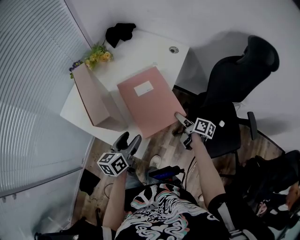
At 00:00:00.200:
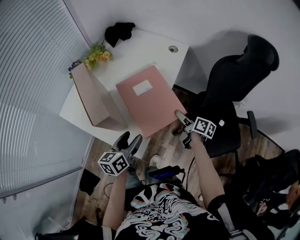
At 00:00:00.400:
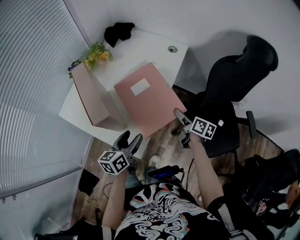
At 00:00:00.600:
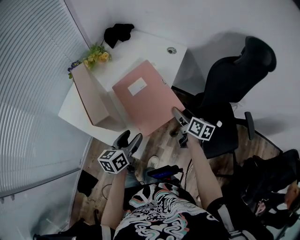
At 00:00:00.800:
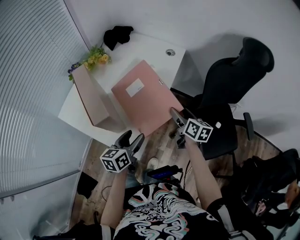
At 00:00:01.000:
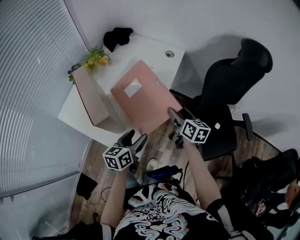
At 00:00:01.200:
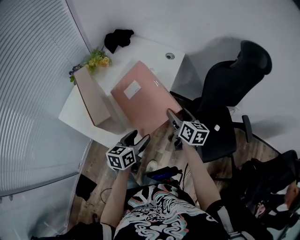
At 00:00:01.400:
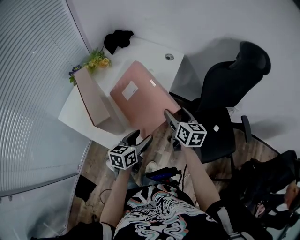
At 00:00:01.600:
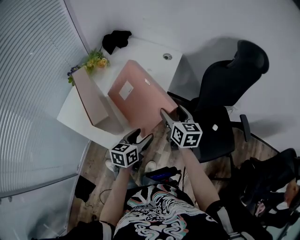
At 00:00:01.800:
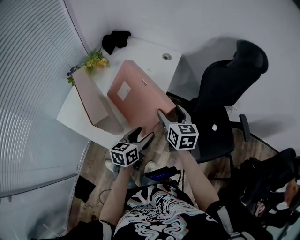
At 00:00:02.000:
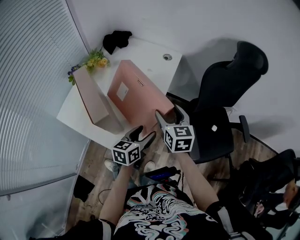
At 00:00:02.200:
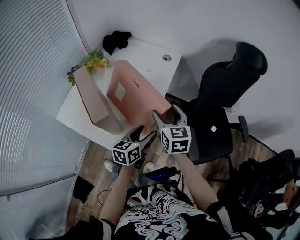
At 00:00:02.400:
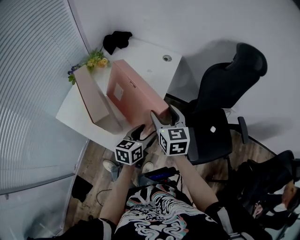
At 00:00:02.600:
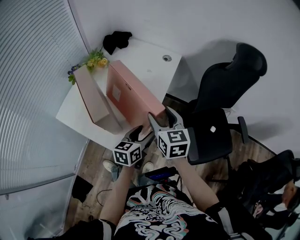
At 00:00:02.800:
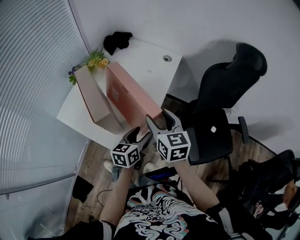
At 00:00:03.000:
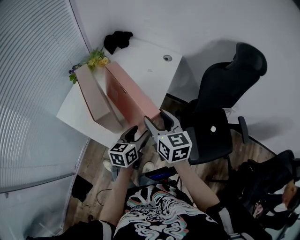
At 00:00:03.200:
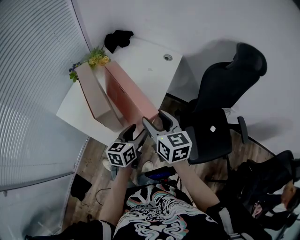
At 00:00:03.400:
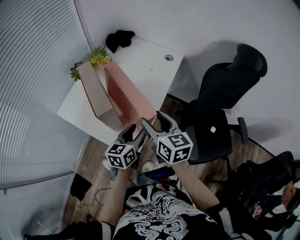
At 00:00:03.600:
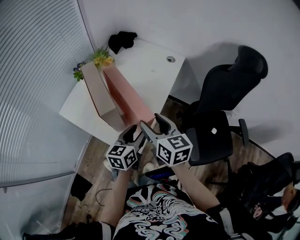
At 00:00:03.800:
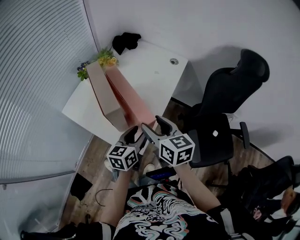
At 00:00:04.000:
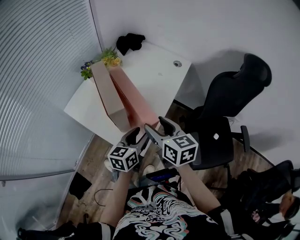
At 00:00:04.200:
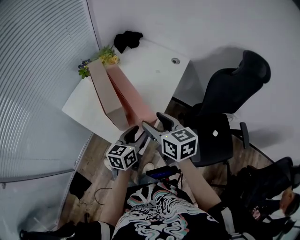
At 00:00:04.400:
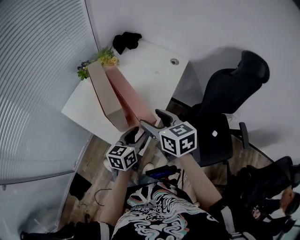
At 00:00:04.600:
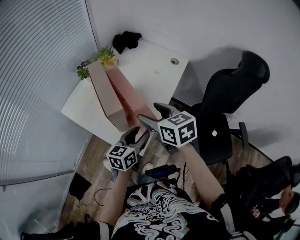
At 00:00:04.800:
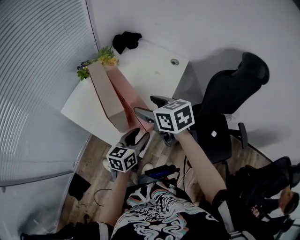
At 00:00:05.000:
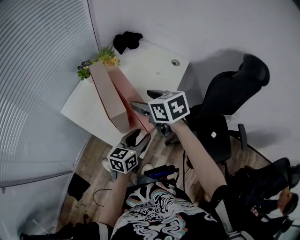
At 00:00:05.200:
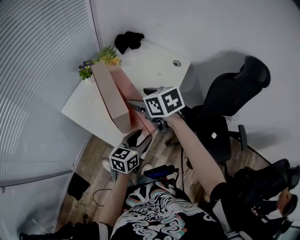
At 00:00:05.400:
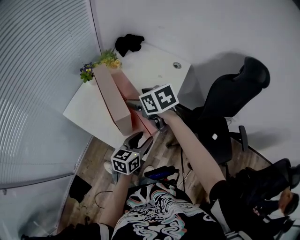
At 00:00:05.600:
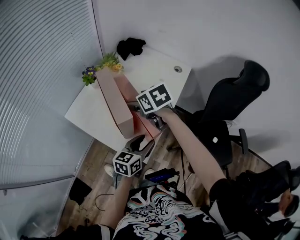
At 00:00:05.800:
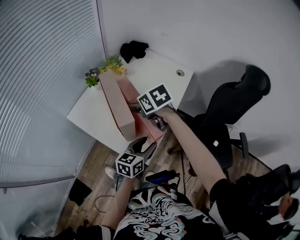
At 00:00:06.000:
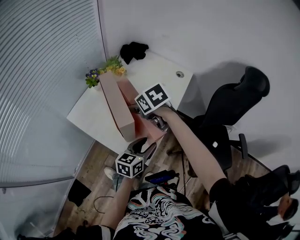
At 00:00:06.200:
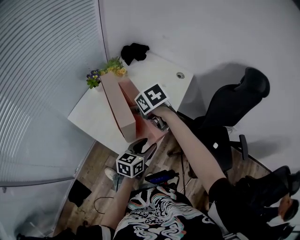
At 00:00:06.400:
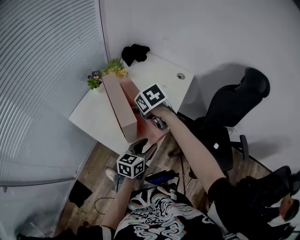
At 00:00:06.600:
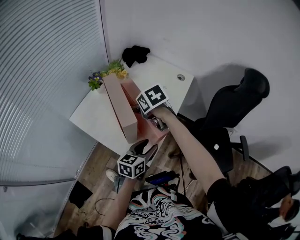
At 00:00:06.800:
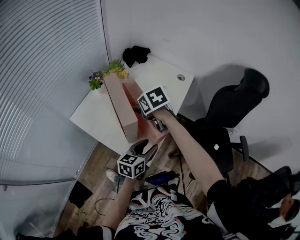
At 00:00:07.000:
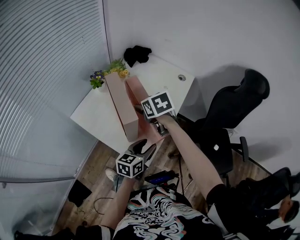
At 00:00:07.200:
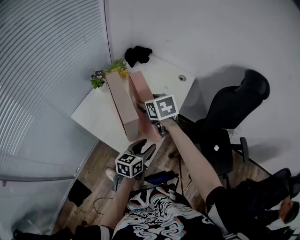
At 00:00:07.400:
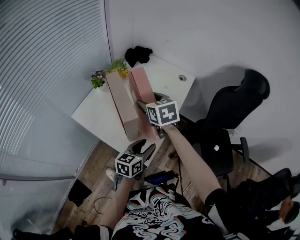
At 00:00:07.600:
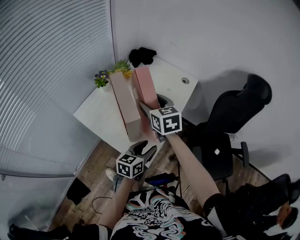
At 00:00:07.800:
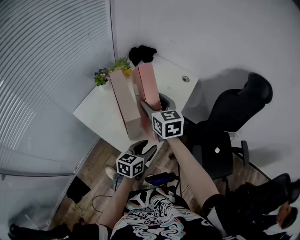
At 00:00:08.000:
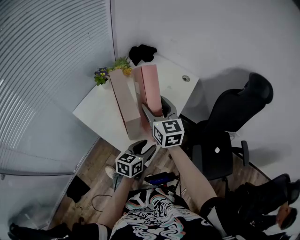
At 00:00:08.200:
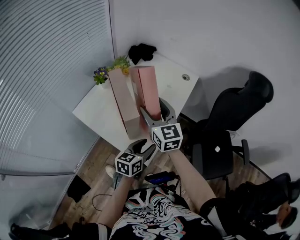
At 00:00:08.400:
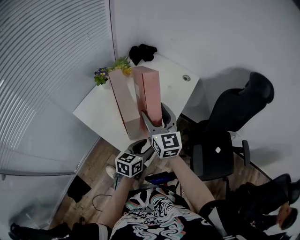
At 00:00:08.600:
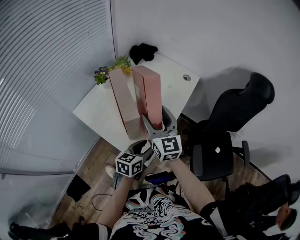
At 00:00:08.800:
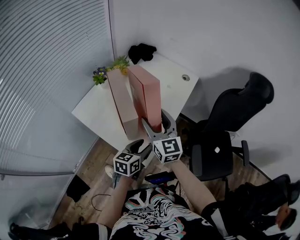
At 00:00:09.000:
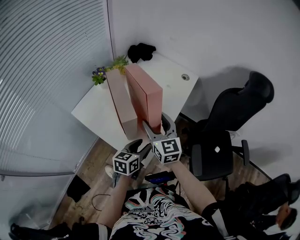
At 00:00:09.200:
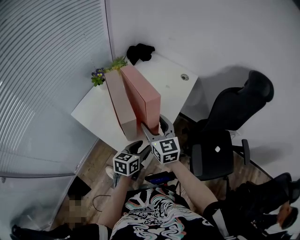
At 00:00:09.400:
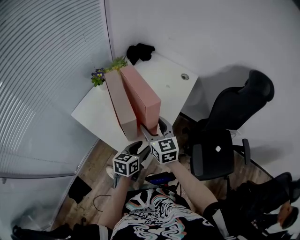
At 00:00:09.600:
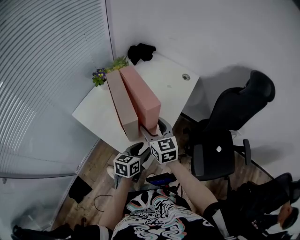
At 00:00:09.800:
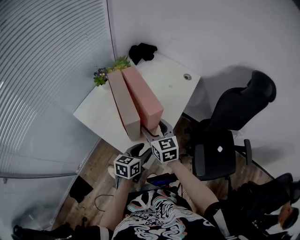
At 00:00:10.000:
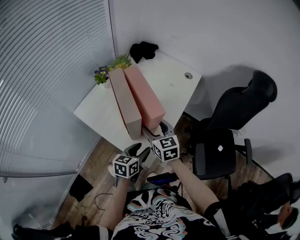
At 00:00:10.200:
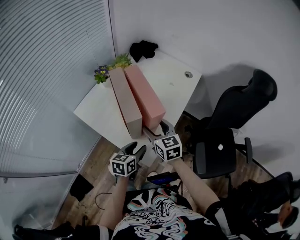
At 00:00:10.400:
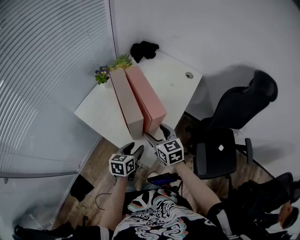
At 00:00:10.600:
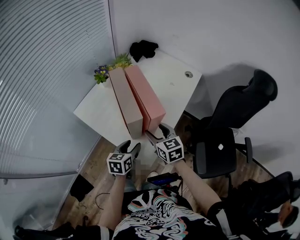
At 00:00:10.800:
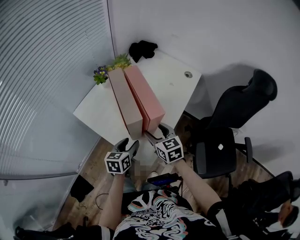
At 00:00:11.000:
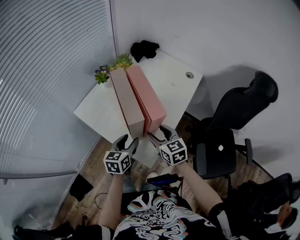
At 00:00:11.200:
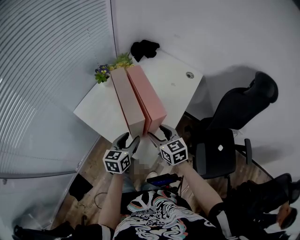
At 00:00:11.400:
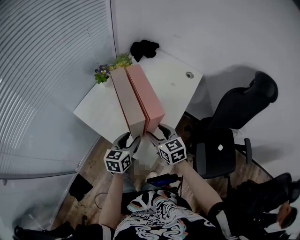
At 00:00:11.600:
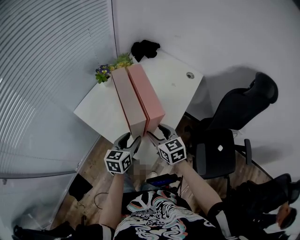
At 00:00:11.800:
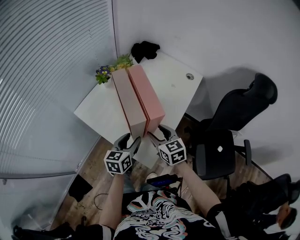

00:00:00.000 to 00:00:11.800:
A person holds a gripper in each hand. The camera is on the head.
00:00:00.000 to 00:00:01.400: The right gripper goes approximately 15 cm upward, and swivels some 40 degrees; the left gripper travels to the right by roughly 5 cm.
00:00:01.400 to 00:00:03.000: The right gripper goes about 15 cm to the left, upward and backward.
00:00:03.000 to 00:00:04.400: The right gripper moves to the left, about 5 cm.
00:00:04.400 to 00:00:06.000: The right gripper goes some 15 cm forward and to the left, and turns by about 30 degrees.
00:00:06.000 to 00:00:07.400: The right gripper turns by approximately 20 degrees.
00:00:07.400 to 00:00:08.800: The right gripper shifts about 5 cm backward, and turns by some 30 degrees.
00:00:08.800 to 00:00:10.400: The left gripper moves to the left, some 5 cm. Meanwhile the right gripper is displaced downward by roughly 10 cm, and rotates about 20 degrees.
00:00:10.400 to 00:00:11.800: The left gripper moves some 5 cm.

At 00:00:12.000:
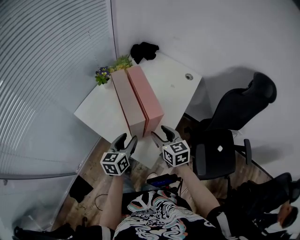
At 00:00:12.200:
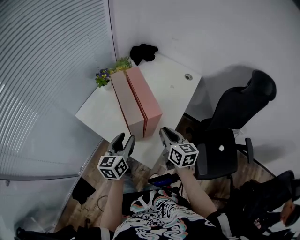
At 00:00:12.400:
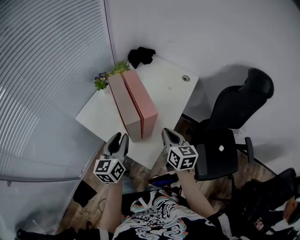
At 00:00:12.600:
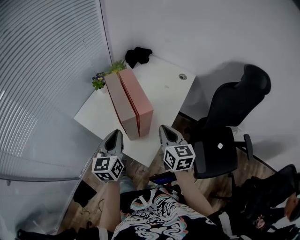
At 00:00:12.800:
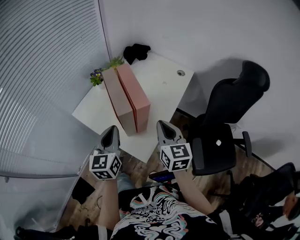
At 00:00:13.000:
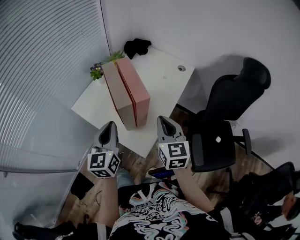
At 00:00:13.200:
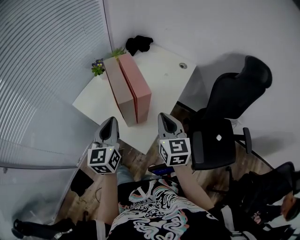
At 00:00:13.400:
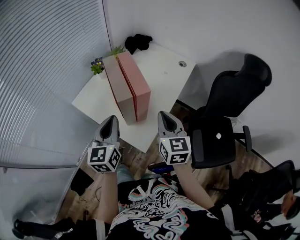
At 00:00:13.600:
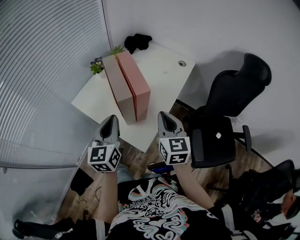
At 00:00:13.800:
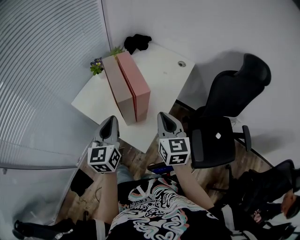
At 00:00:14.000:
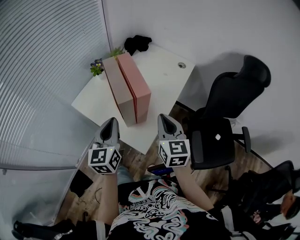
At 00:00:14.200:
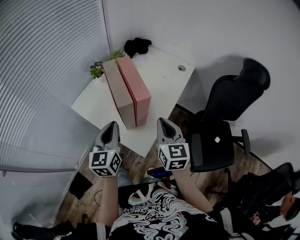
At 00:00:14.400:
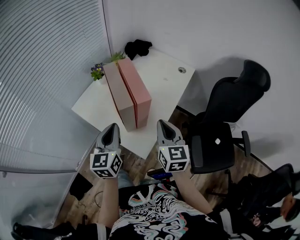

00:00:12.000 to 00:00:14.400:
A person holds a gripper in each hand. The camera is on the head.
00:00:12.000 to 00:00:13.200: Both grippers move upward, about 10 cm. The left gripper rotates about 20 degrees, and closes. The right gripper closes.
00:00:13.200 to 00:00:14.400: The grippers make only small movements.

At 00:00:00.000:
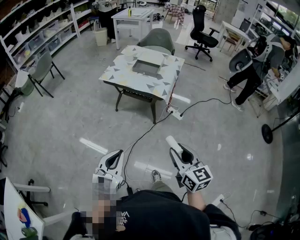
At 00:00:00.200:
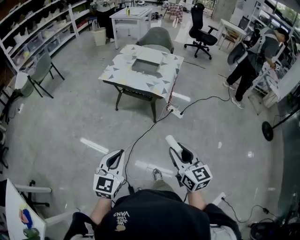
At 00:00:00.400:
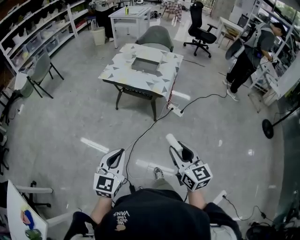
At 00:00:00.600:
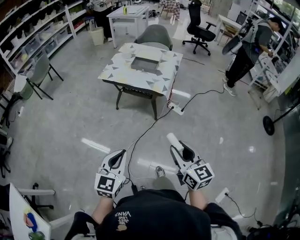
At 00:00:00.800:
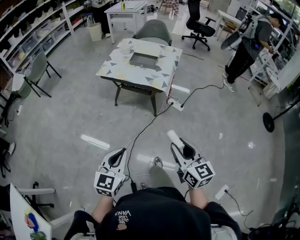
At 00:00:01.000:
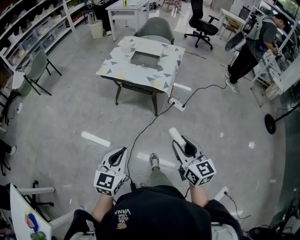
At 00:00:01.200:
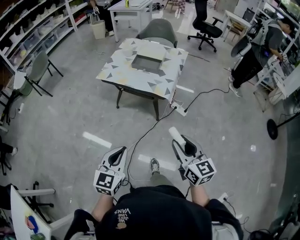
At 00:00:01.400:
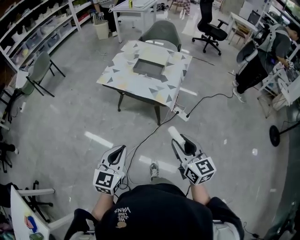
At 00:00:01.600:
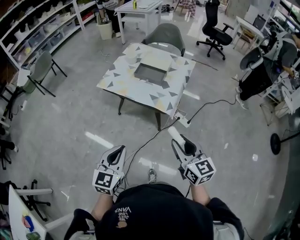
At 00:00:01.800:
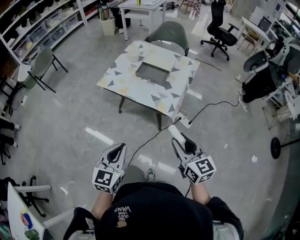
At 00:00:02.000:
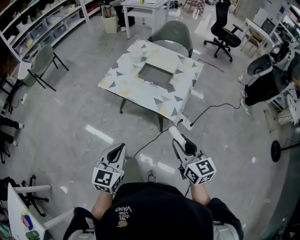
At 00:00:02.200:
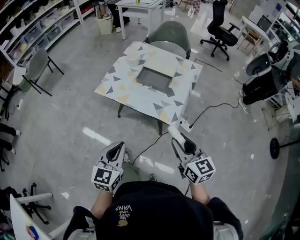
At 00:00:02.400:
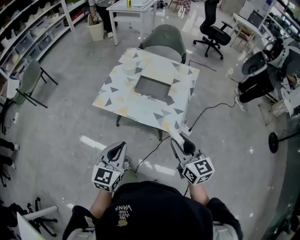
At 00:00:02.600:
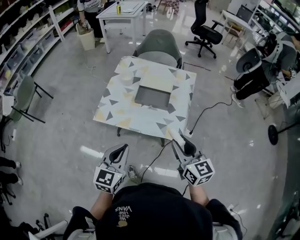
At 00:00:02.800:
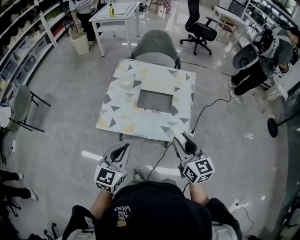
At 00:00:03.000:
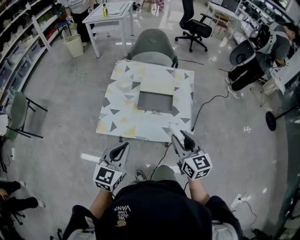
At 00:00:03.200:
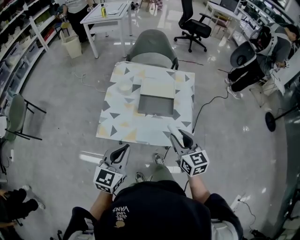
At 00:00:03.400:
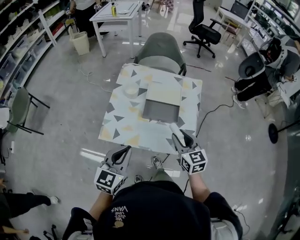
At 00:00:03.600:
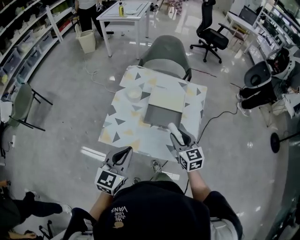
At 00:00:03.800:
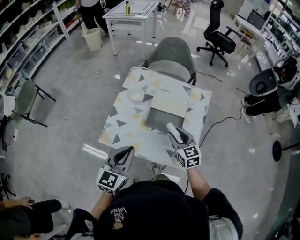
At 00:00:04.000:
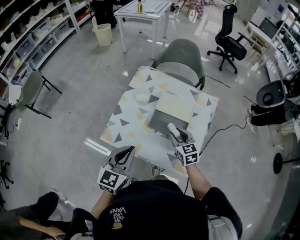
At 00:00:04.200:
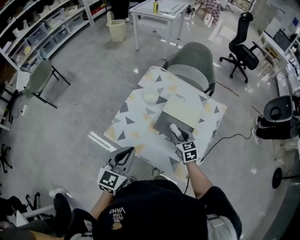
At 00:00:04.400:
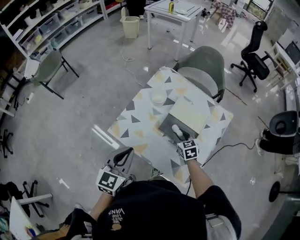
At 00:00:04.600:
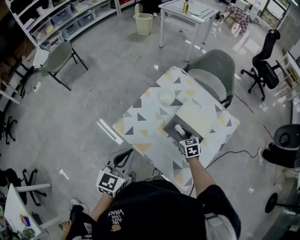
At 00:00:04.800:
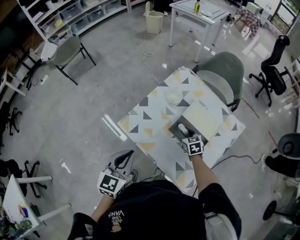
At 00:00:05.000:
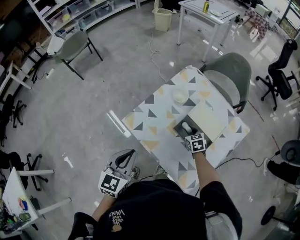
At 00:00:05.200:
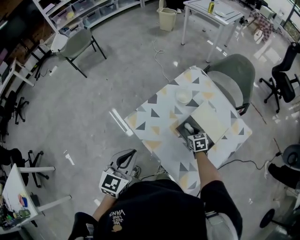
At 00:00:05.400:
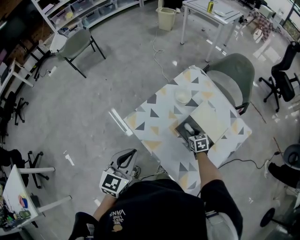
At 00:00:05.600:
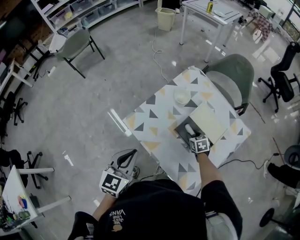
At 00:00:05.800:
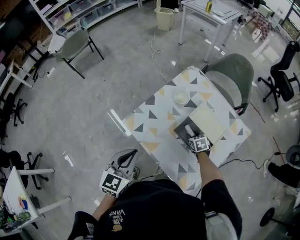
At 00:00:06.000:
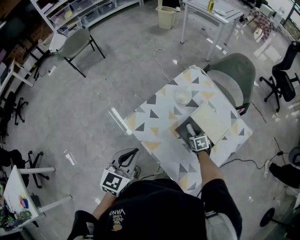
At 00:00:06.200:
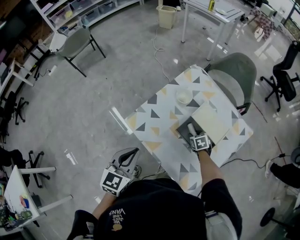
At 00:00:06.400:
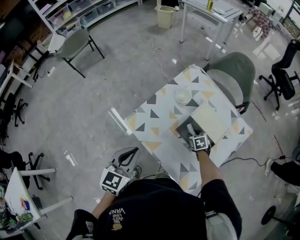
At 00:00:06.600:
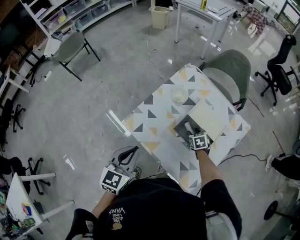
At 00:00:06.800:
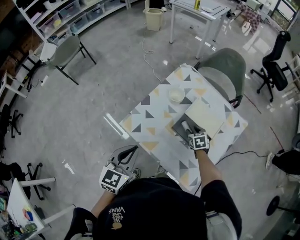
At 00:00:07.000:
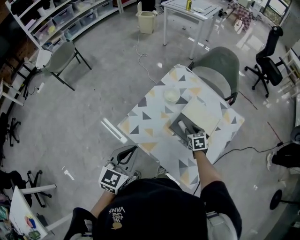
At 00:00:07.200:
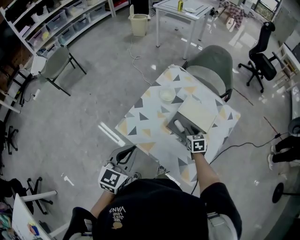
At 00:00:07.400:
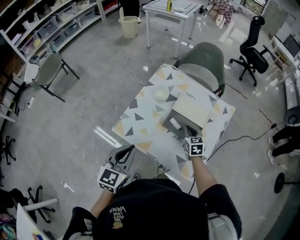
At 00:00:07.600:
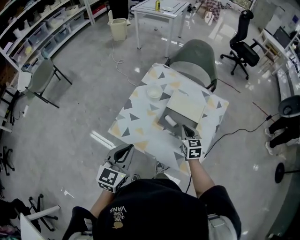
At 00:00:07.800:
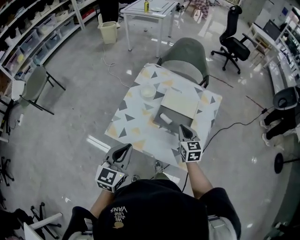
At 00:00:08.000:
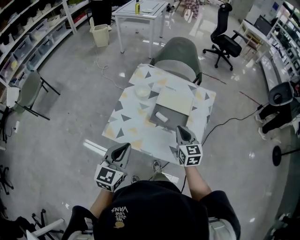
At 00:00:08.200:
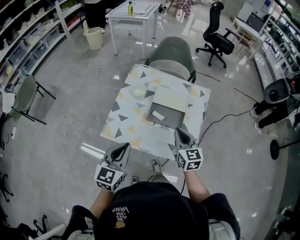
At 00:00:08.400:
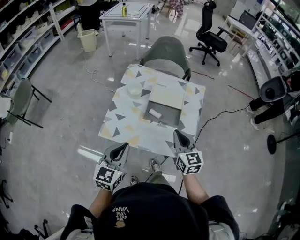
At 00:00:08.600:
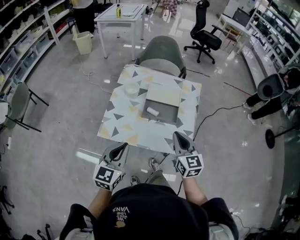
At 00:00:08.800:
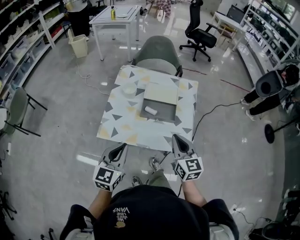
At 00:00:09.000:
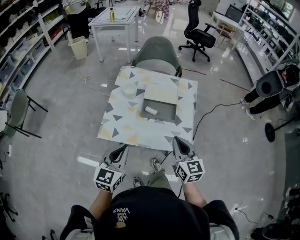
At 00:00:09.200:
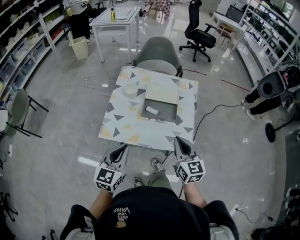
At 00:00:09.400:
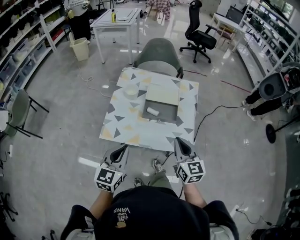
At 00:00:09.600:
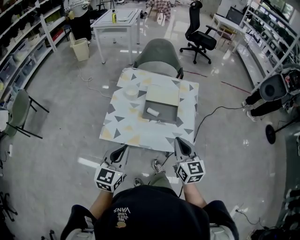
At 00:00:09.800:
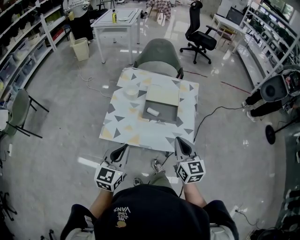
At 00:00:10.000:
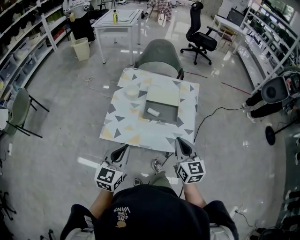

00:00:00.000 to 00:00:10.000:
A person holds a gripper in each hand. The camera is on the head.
00:00:00.000 to 00:00:01.400: Both grippers travel together forward, some 15 cm.
00:00:01.400 to 00:00:02.800: The grippers both shift forward by approximately 35 cm.
00:00:02.800 to 00:00:04.200: The left gripper shifts about 15 cm forward; the right gripper goes about 35 cm forward and downward, and rotates some 30 degrees.
00:00:04.200 to 00:00:05.800: The left gripper changes its angle by approximately 20 degrees. The right gripper heads downward and forward, covering some 15 cm, and swivels approximately 30 degrees.
00:00:05.800 to 00:00:07.200: The right gripper heads upward, covering some 10 cm, and changes its angle by some 20 degrees.
00:00:07.200 to 00:00:08.600: The left gripper is displaced backward by about 5 cm, and turns by roughly 20 degrees. The right gripper heads backward and upward, covering approximately 30 cm, points its fingers approximately 30 degrees further upward, and closes up.
00:00:08.600 to 00:00:10.000: The grippers move only a little.
